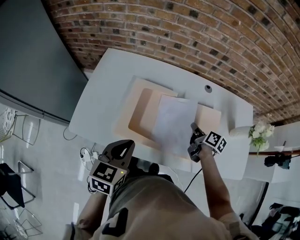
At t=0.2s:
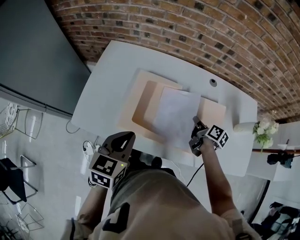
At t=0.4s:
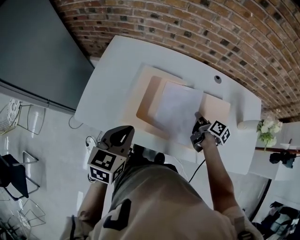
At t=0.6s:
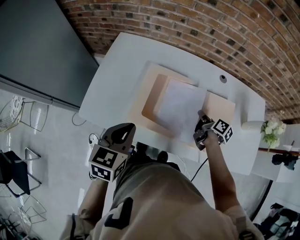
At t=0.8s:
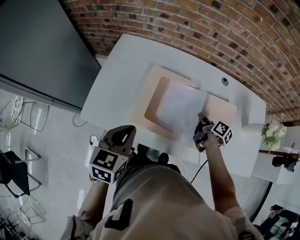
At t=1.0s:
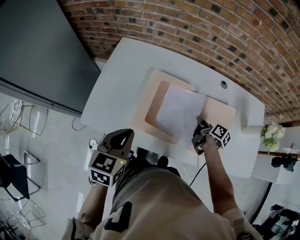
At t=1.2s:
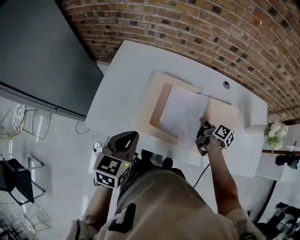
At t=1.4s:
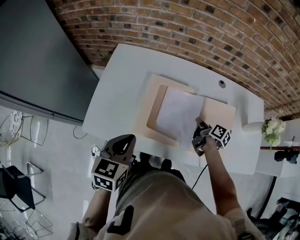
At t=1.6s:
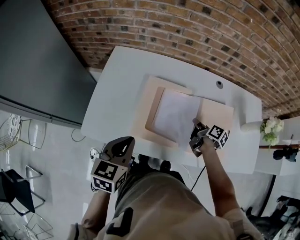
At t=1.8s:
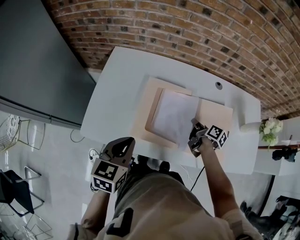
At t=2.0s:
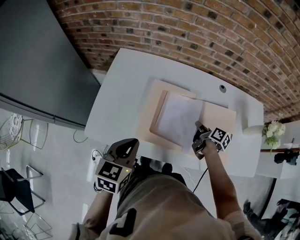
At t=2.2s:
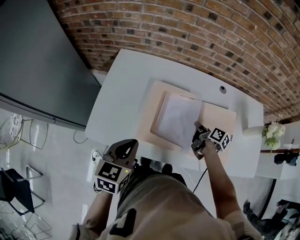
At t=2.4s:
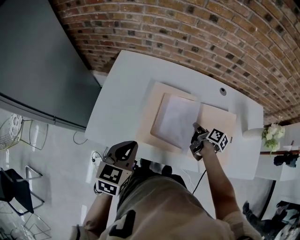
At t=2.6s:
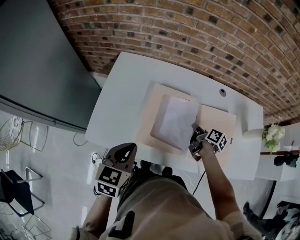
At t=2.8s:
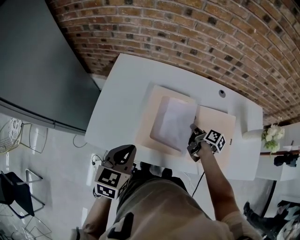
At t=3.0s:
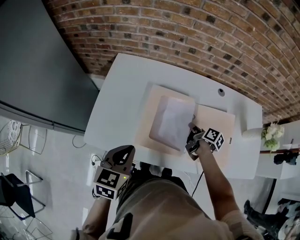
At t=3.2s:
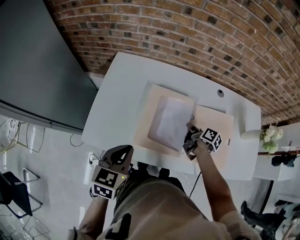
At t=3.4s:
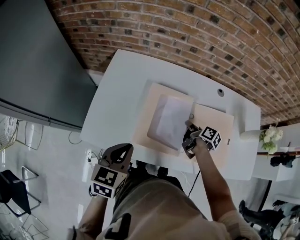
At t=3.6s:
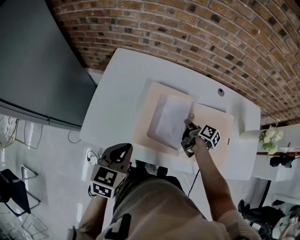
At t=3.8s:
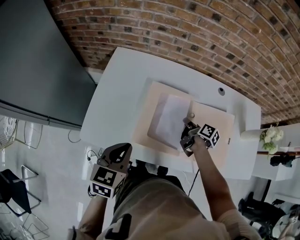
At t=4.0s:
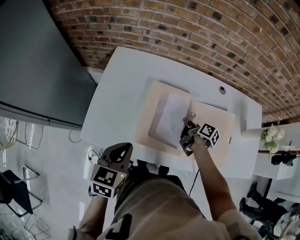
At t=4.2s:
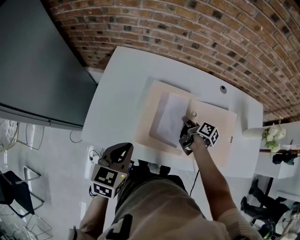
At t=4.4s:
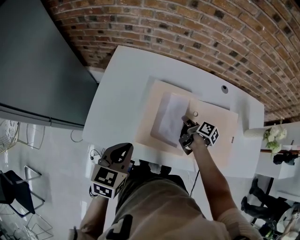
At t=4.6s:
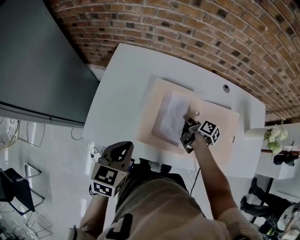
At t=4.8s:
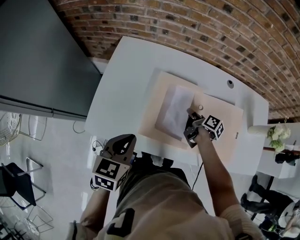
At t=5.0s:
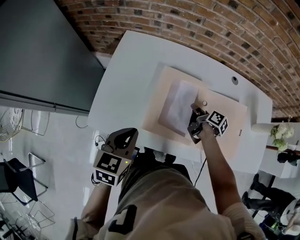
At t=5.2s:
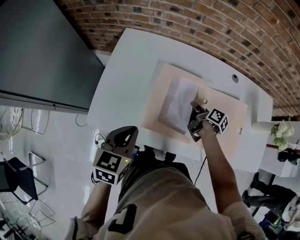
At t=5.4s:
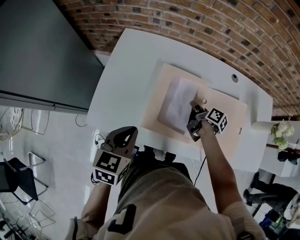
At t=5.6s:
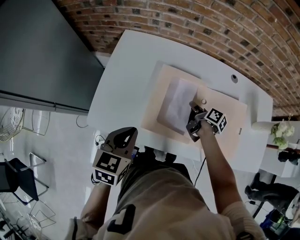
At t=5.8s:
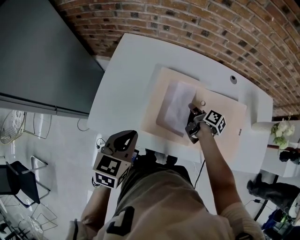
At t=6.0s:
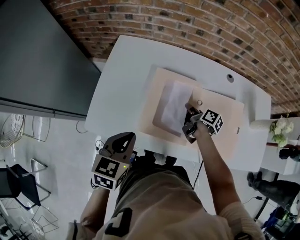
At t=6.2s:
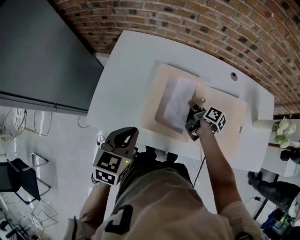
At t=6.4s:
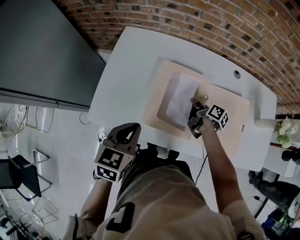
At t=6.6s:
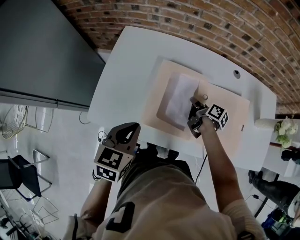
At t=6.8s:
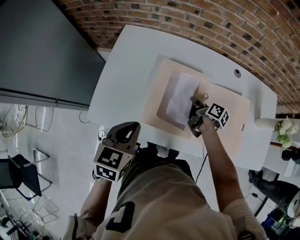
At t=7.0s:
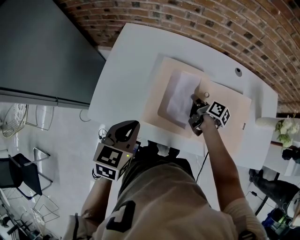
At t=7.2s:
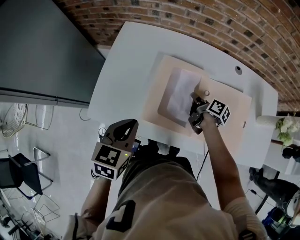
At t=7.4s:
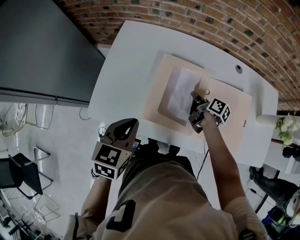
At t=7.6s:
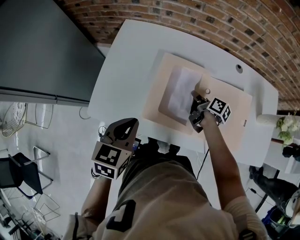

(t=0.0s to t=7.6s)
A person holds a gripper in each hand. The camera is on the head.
t=0.0s - t=1.6s: Both grippers travel together to the left, about 5 cm.
t=1.6s - t=3.0s: The grippers make only small movements.
t=3.0s - t=4.6s: The right gripper shifts by approximately 5 cm.
t=4.6s - t=6.0s: Both grippers stay put.
t=6.0s - t=7.6s: Both grippers stay about where they are.

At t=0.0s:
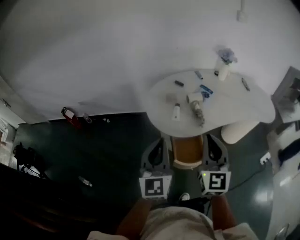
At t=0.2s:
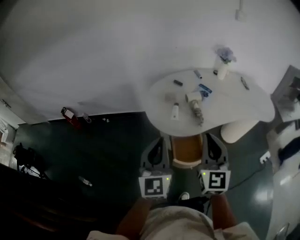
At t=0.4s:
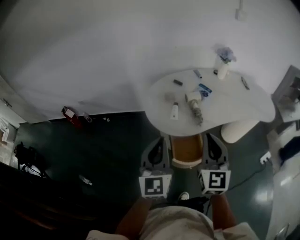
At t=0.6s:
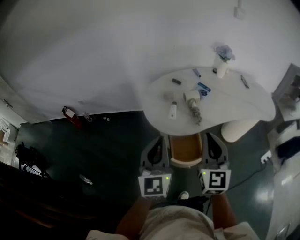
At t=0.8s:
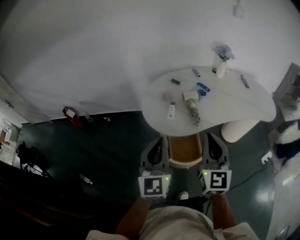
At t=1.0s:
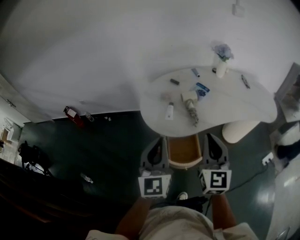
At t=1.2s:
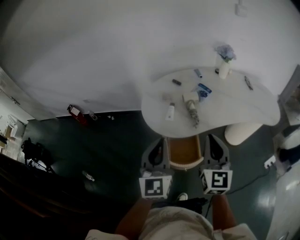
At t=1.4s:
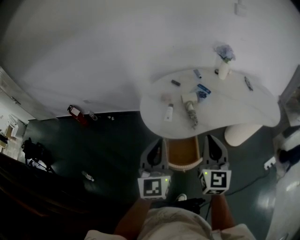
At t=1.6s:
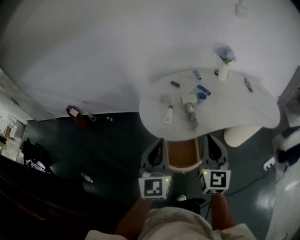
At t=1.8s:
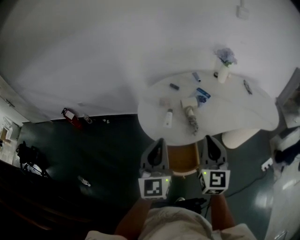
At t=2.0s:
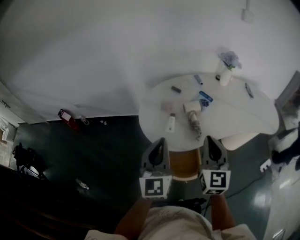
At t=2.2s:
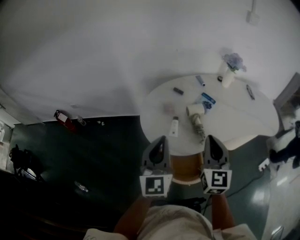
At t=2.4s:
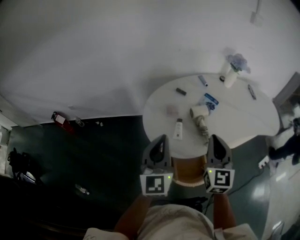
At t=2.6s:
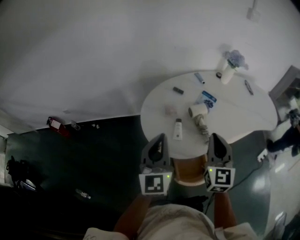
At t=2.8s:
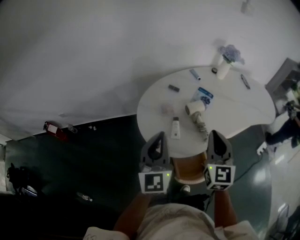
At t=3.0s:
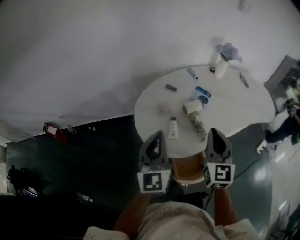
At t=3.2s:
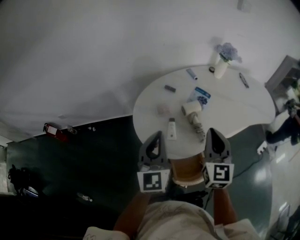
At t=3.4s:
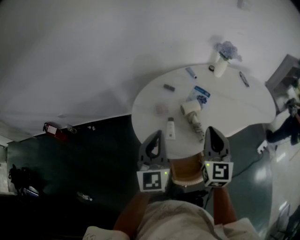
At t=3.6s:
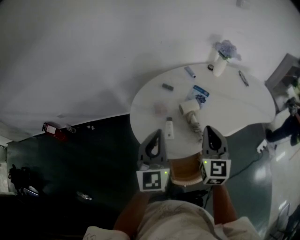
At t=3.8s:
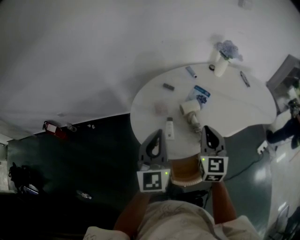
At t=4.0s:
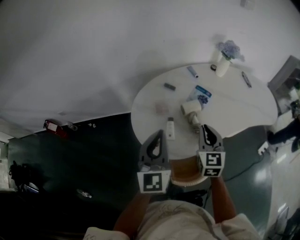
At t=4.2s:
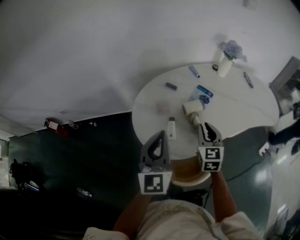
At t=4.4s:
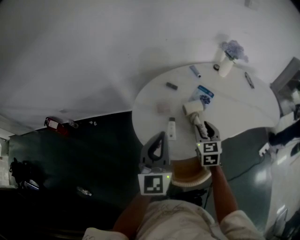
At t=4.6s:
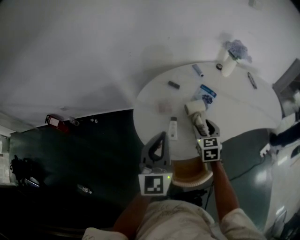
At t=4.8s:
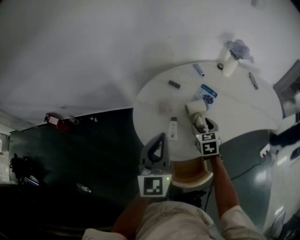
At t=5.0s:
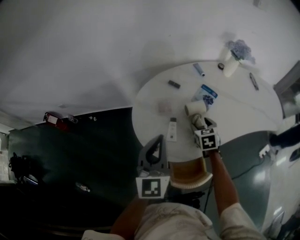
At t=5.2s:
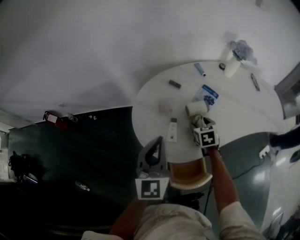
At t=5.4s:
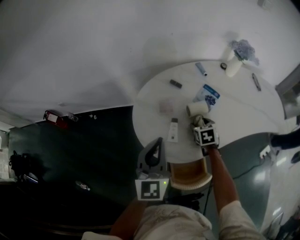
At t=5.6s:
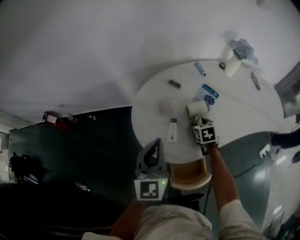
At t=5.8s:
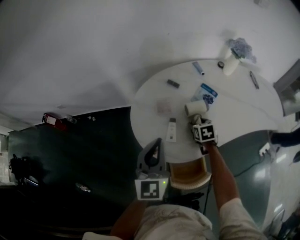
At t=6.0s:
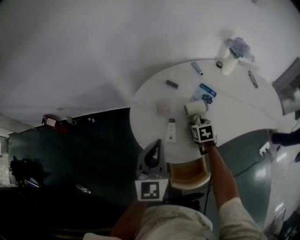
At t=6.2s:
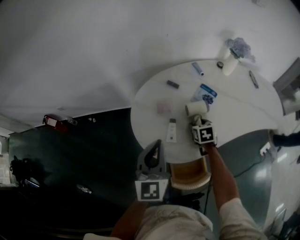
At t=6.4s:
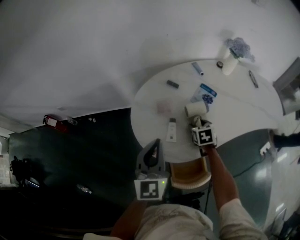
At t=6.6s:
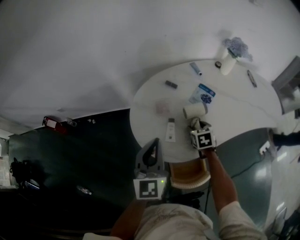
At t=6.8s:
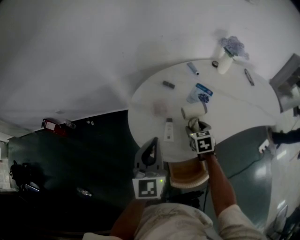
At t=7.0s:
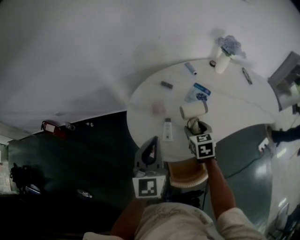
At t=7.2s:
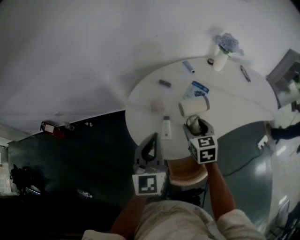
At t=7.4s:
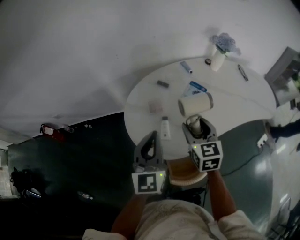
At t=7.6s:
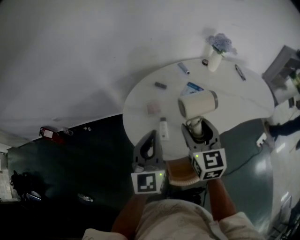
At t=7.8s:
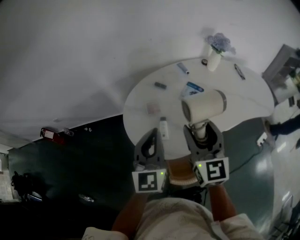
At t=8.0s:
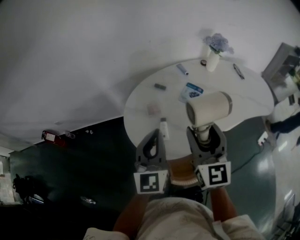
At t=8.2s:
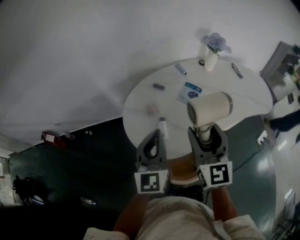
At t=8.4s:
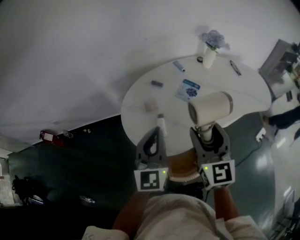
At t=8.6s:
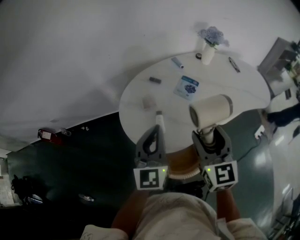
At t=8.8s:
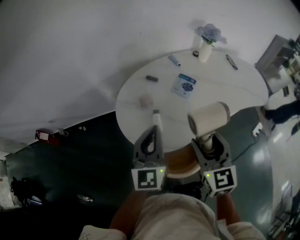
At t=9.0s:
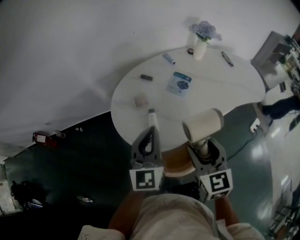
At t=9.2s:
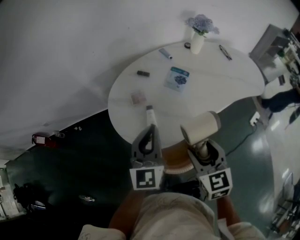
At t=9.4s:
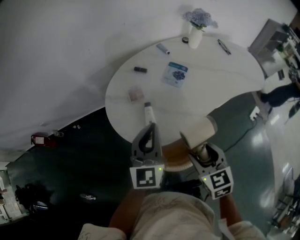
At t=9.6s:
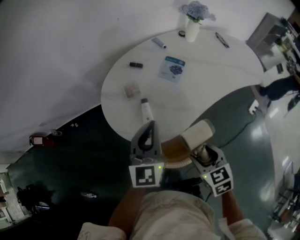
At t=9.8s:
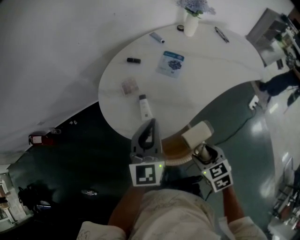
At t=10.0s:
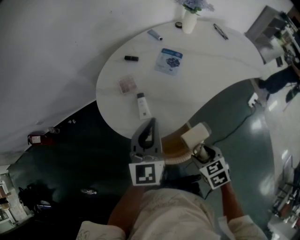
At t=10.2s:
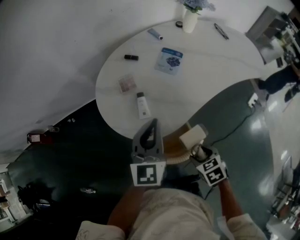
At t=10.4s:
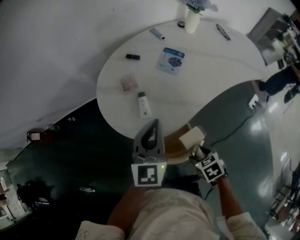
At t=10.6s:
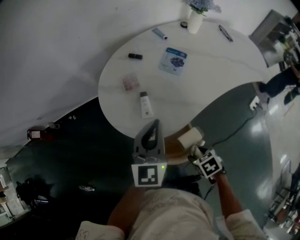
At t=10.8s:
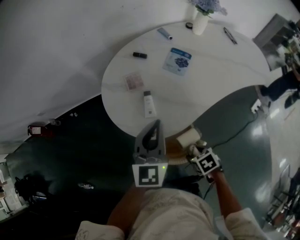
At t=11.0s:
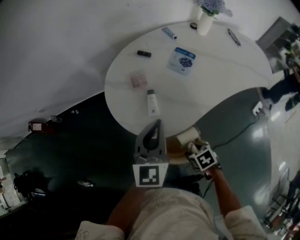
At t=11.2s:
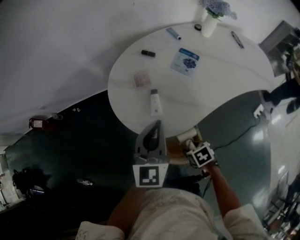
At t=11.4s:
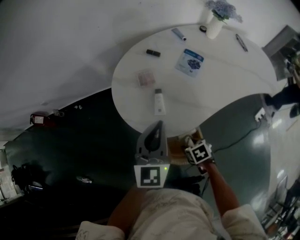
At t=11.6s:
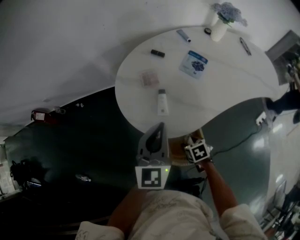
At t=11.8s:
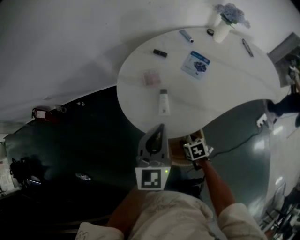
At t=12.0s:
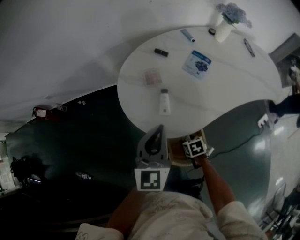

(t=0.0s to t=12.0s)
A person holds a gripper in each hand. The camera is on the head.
t=0.0s - t=1.6s: Both grippers move to the right, roughly 10 cm.
t=1.6s - t=3.0s: Both grippers travel together forward and to the left, about 20 cm.
t=3.0s - t=4.4s: The right gripper travels downward and forward by approximately 15 cm, turns by roughly 20 degrees, and opens up.
t=4.4s - t=6.0s: The right gripper goes about 15 cm downward and forward, changes its angle by approximately 30 degrees, and opens.
t=6.0s - t=7.6s: The right gripper goes roughly 25 cm upward, and points its fingers roughly 40 degrees further upward.
t=7.6s - t=9.0s: The right gripper heads backward, covering approximately 10 cm.
t=9.0s - t=10.4s: The left gripper shifts some 5 cm downward. The right gripper goes some 25 cm downward and backward, and tilts its fingers some 50 degrees downward.
t=10.4s - t=12.0s: The right gripper travels downward by approximately 15 cm. Meanwhile the left gripper moves some 5 cm.

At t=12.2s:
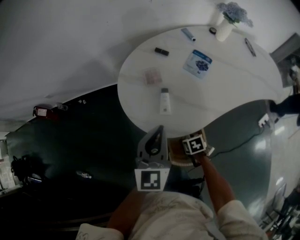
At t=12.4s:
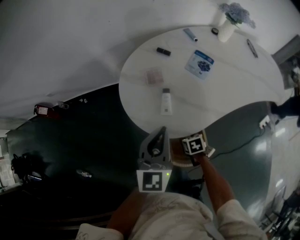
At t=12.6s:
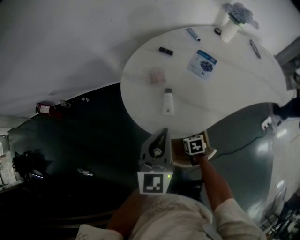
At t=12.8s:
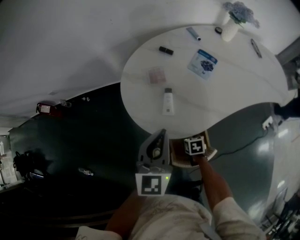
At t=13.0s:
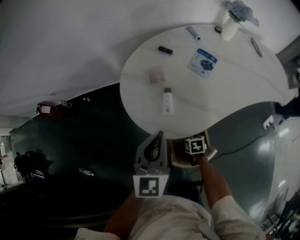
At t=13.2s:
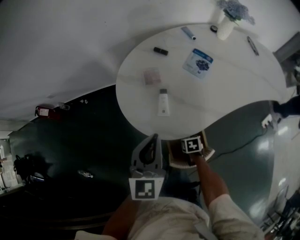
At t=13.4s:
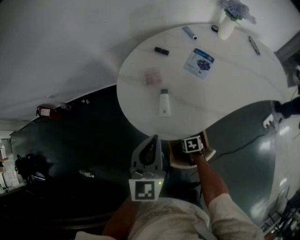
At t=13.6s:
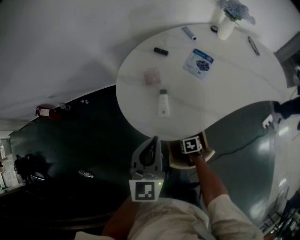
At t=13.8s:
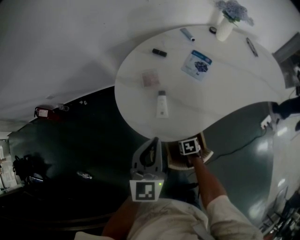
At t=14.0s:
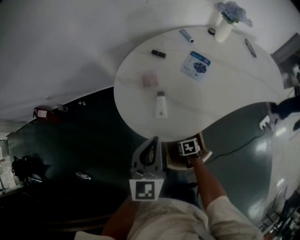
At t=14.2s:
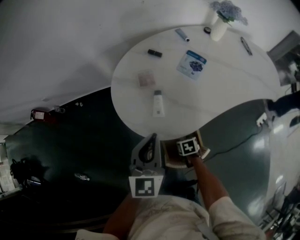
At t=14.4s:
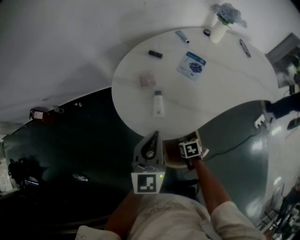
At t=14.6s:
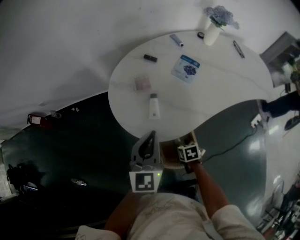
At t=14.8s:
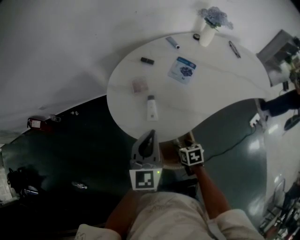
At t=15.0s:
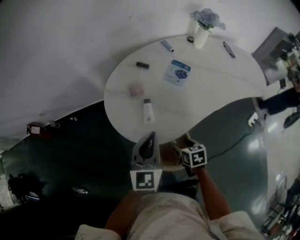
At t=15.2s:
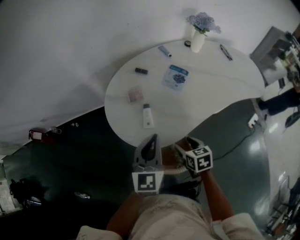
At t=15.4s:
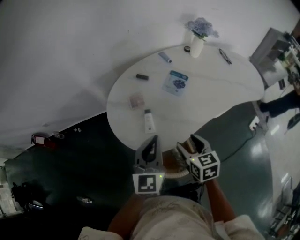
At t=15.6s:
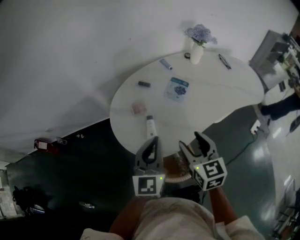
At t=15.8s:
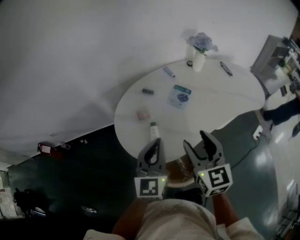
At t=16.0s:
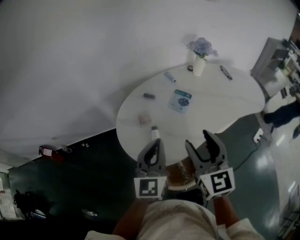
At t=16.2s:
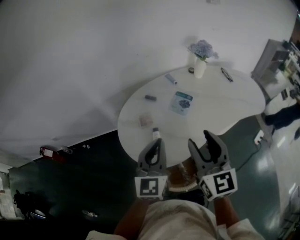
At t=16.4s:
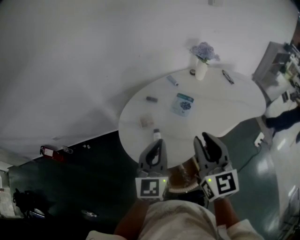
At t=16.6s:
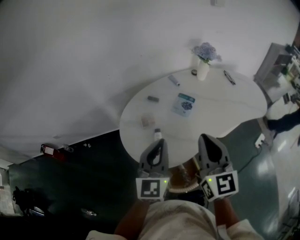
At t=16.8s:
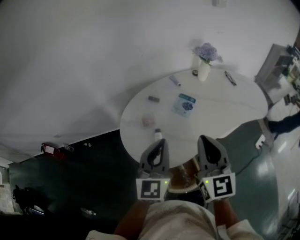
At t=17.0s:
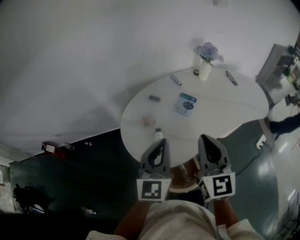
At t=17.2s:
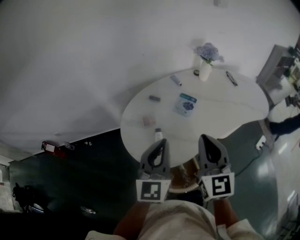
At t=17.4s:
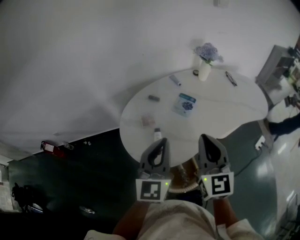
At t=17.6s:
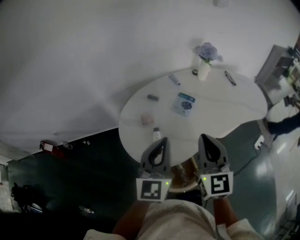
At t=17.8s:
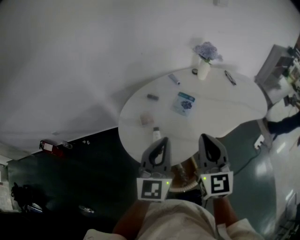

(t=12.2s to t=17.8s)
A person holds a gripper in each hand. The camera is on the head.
t=12.2s - t=13.6s: The right gripper heads downward, covering some 5 cm.
t=13.6s - t=15.0s: The right gripper travels upward by approximately 15 cm, and changes its angle by approximately 30 degrees.
t=15.0s - t=16.4s: The left gripper moves upward, about 10 cm; the right gripper is displaced upward by roughly 35 cm, tips its fingers upward by approximately 50 degrees, and closes.
t=16.4s - t=17.8s: The right gripper closes its fingers.
